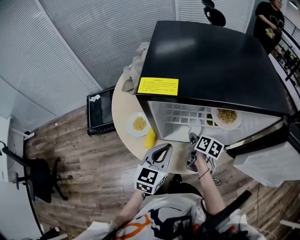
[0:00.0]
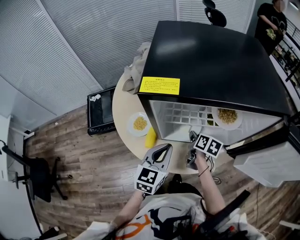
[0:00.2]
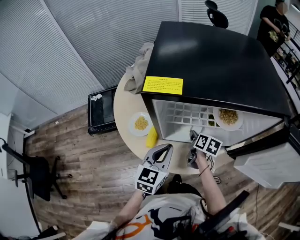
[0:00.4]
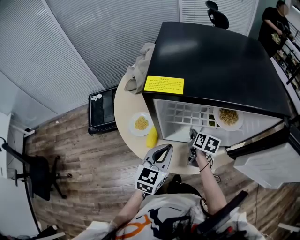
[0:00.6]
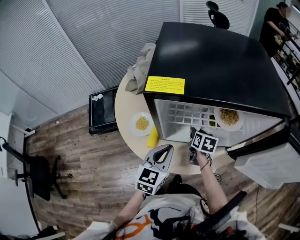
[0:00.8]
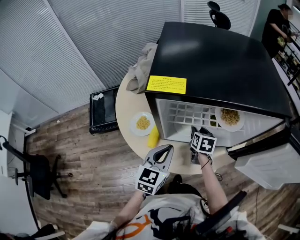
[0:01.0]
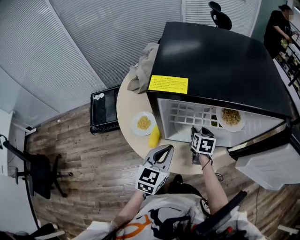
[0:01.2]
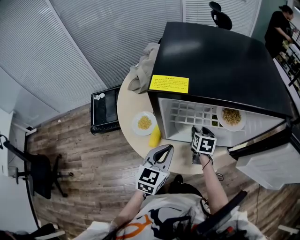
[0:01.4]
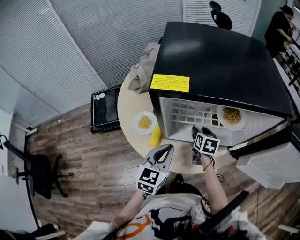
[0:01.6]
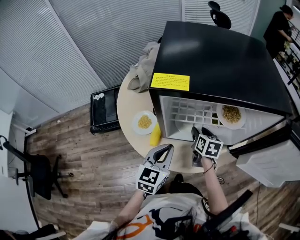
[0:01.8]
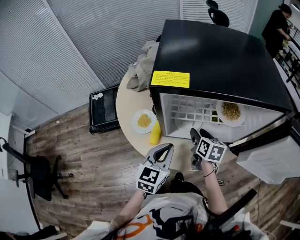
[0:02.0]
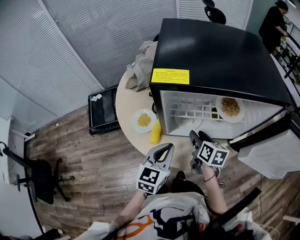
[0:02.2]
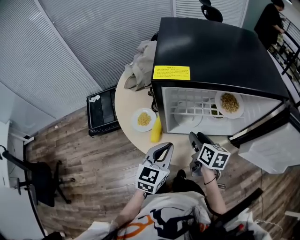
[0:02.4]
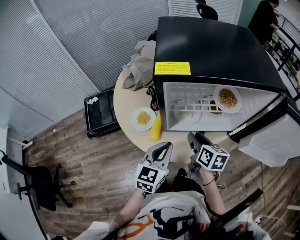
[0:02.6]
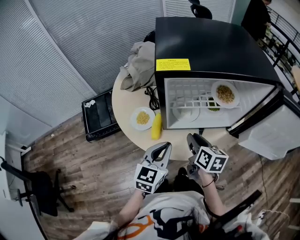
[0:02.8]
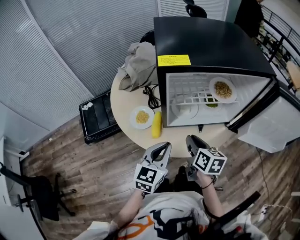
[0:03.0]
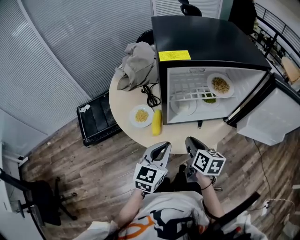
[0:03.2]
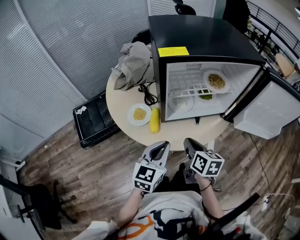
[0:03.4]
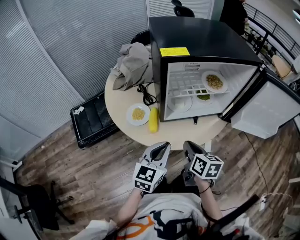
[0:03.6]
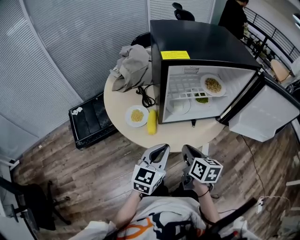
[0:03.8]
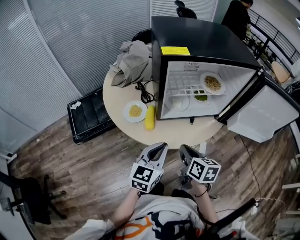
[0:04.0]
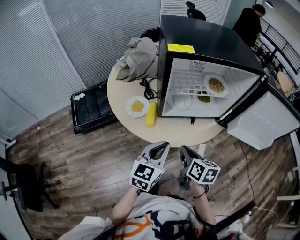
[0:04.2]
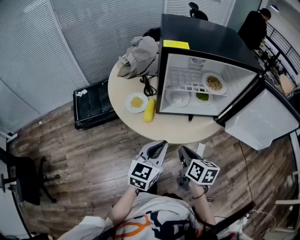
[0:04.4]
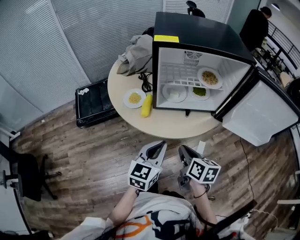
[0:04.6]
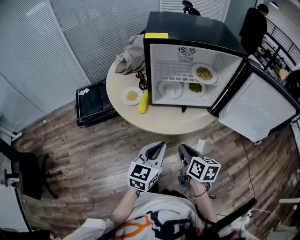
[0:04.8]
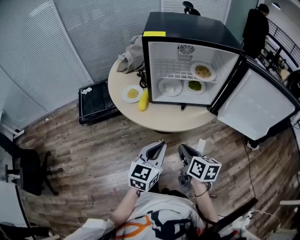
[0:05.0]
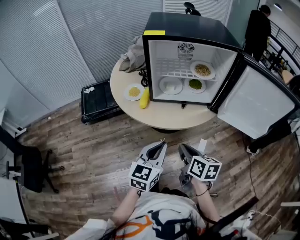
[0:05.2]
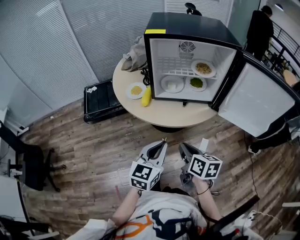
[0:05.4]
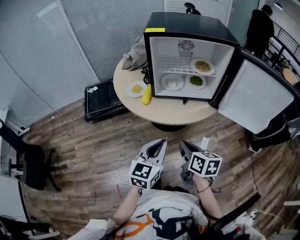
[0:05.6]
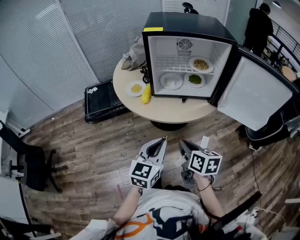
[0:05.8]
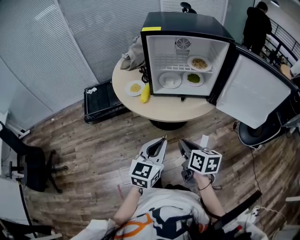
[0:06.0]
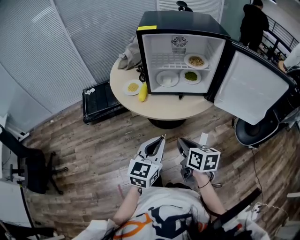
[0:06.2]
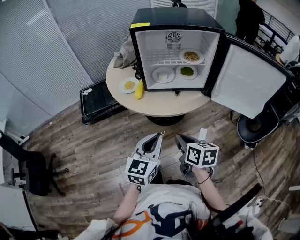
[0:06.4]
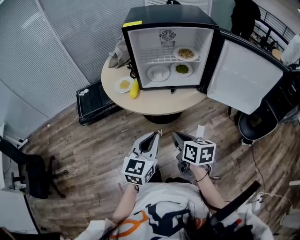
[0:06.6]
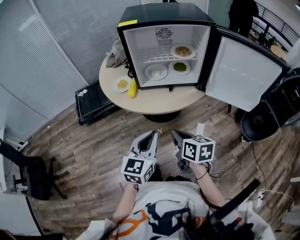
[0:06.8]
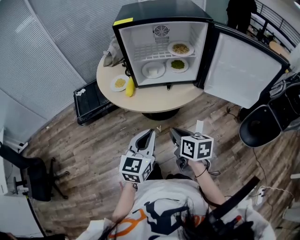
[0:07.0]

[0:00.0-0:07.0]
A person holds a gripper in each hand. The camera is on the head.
0:00.0 to 0:01.4: The right gripper turns by about 30 degrees, and opens.
0:01.4 to 0:02.8: The right gripper heads backward and upward, covering about 20 cm, and changes its angle by roughly 20 degrees. Meanwhile the left gripper heads backward, covering approximately 5 cm.
0:02.8 to 0:04.2: The right gripper is displaced backward by some 15 cm, and closes its fingers; the left gripper heads backward, covering roughly 10 cm.
0:04.2 to 0:05.6: The grippers both shift backward and to the right by roughly 15 cm.
0:05.6 to 0:07.0: The grippers make only small movements.

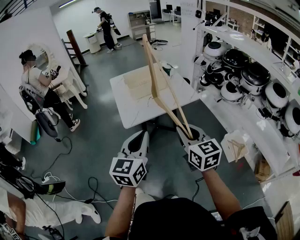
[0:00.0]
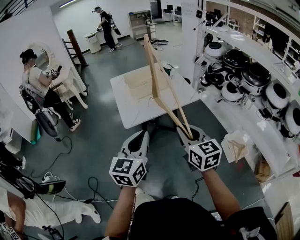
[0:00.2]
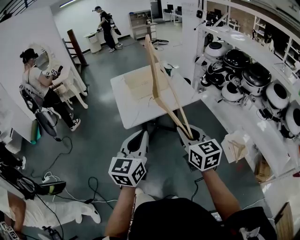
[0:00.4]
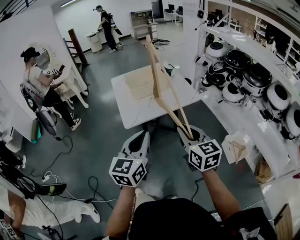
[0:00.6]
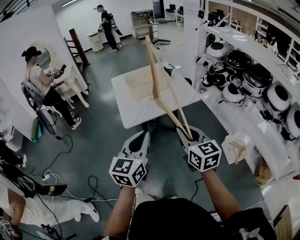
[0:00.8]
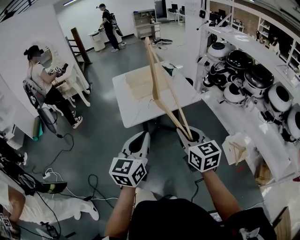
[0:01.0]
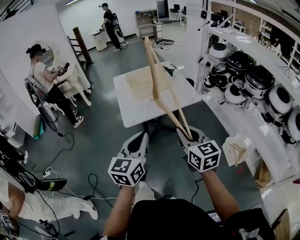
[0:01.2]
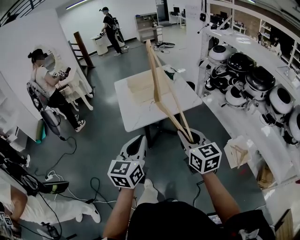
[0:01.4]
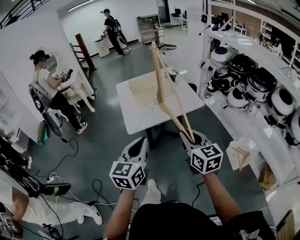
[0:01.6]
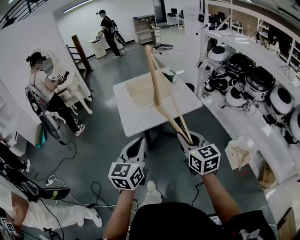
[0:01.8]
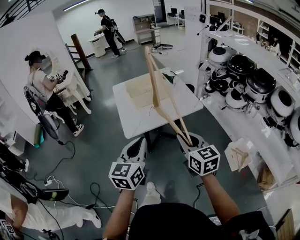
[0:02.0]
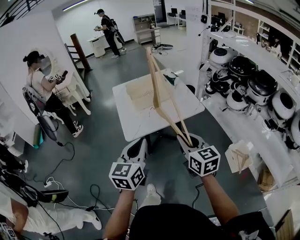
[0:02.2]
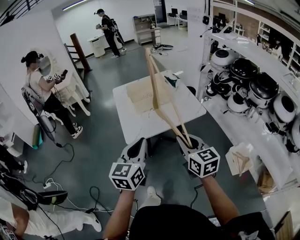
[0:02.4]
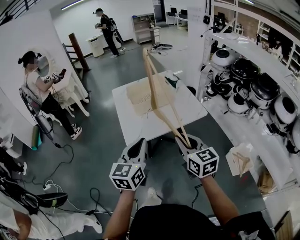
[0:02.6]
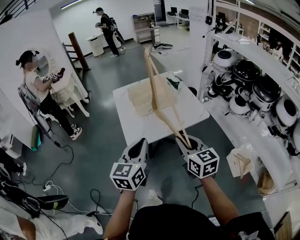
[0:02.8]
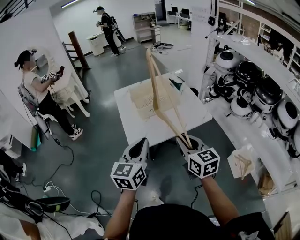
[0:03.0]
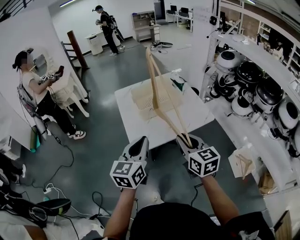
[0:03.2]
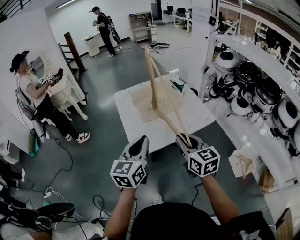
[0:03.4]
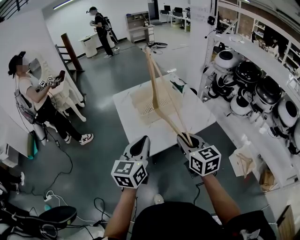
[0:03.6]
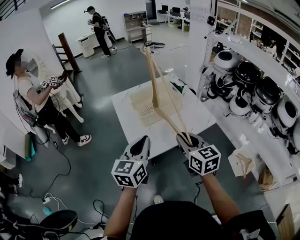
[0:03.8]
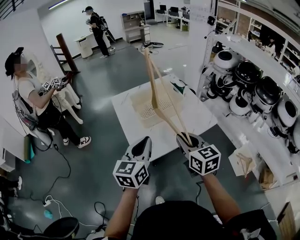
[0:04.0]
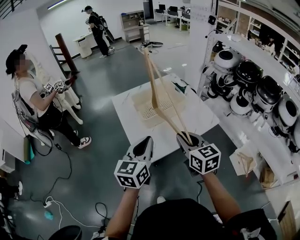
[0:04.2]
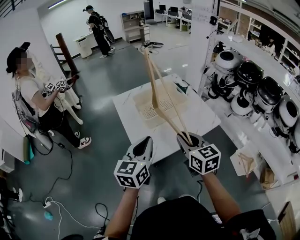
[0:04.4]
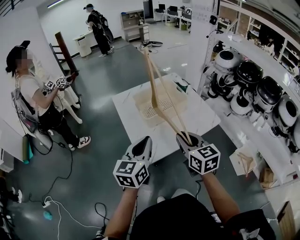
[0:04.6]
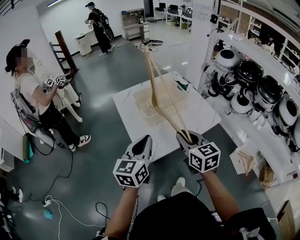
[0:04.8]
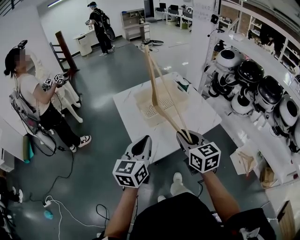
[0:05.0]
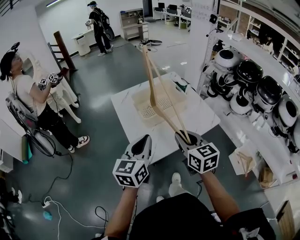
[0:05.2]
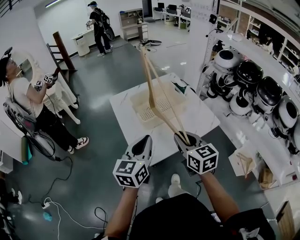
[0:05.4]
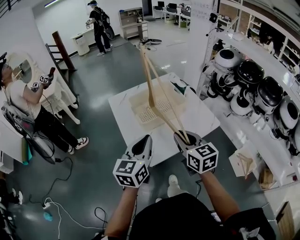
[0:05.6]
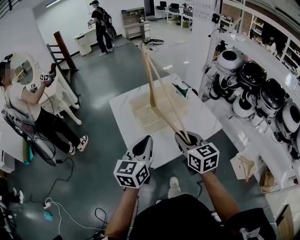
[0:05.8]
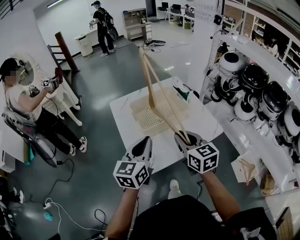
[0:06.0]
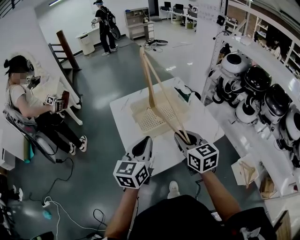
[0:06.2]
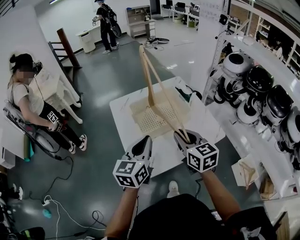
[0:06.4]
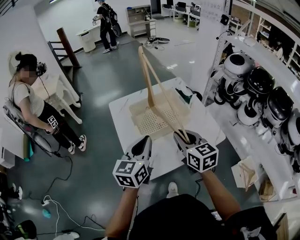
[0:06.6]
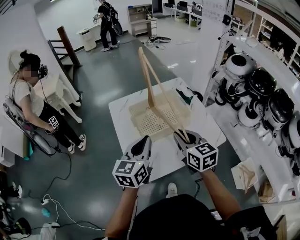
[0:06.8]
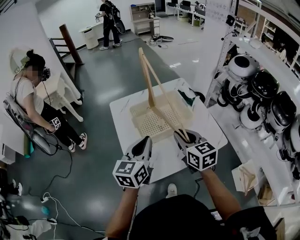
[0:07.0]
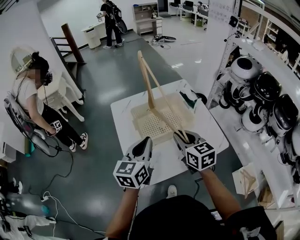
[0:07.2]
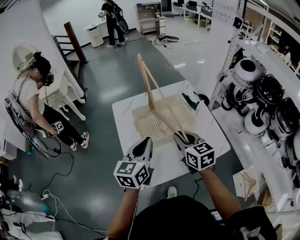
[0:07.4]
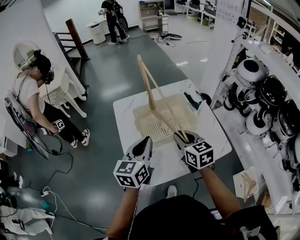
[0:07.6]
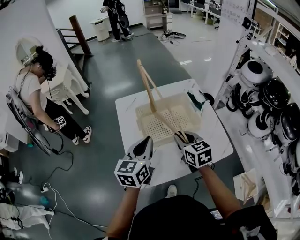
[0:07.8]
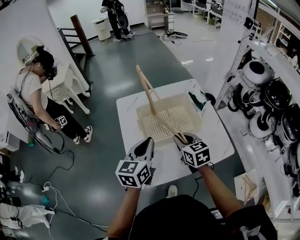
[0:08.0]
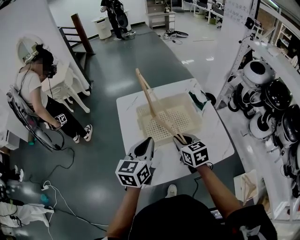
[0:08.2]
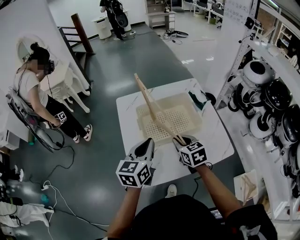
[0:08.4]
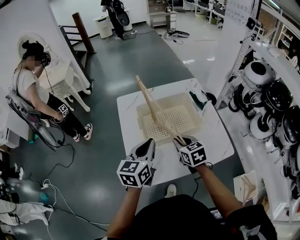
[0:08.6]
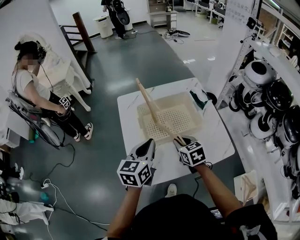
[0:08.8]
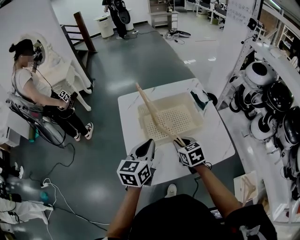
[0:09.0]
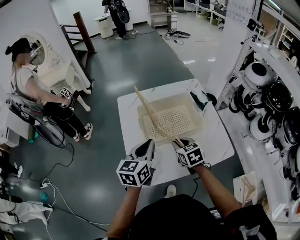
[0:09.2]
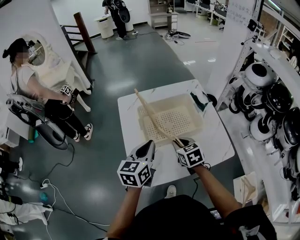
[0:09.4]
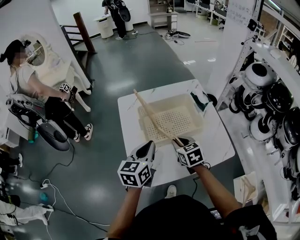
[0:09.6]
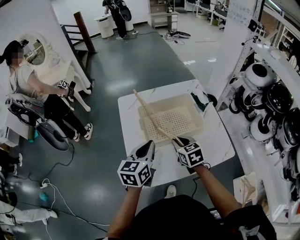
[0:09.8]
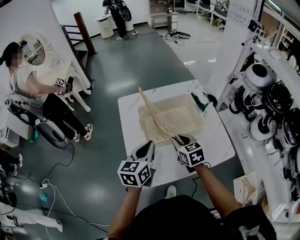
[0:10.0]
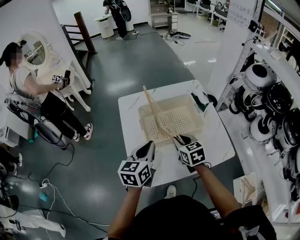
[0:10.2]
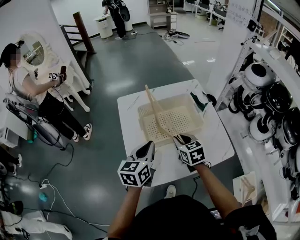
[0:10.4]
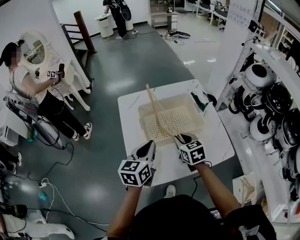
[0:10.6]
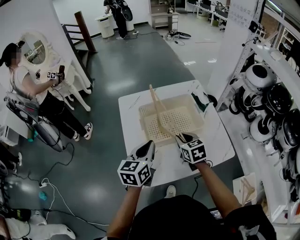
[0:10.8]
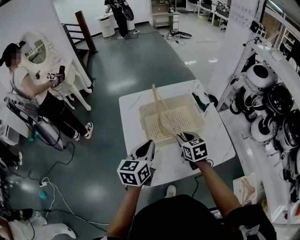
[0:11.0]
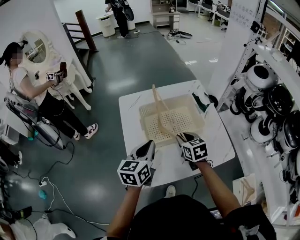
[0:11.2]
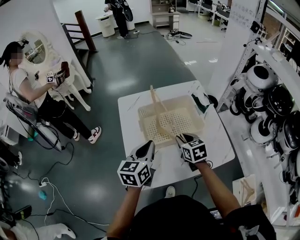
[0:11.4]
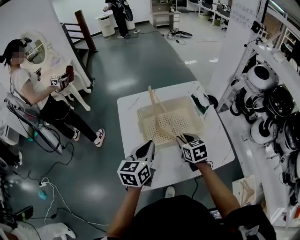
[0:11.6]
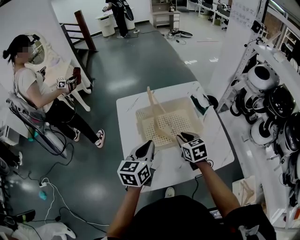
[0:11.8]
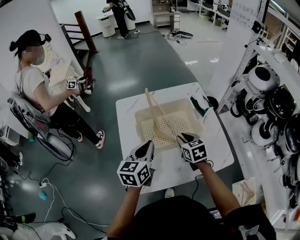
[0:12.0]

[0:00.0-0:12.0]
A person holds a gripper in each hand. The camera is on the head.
0:00.0 to 0:01.6: The grippers make only small movements.
0:01.6 to 0:03.0: The right gripper is displaced forward and to the left by some 15 cm, while the left gripper is displaced forward by roughly 15 cm.
0:03.0 to 0:04.4: The grippers both shift forward and to the left by about 15 cm.
0:04.4 to 0:06.0: Both grippers travel together forward, about 10 cm.
0:06.0 to 0:07.6: Both grippers move forward, approximately 15 cm.
0:07.6 to 0:09.0: The right gripper is displaced downward by approximately 10 cm.
0:09.0 to 0:10.4: The grippers move only a little.
0:10.4 to 0:12.0: The right gripper changes place by approximately 5 cm.

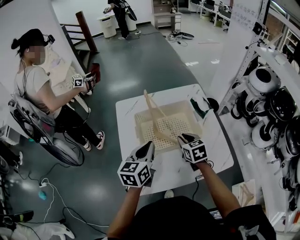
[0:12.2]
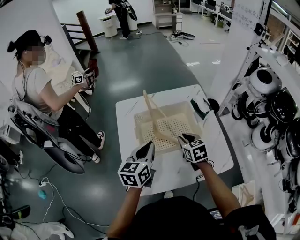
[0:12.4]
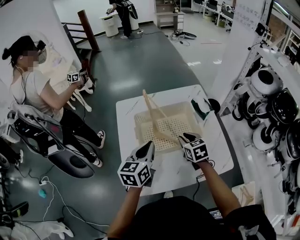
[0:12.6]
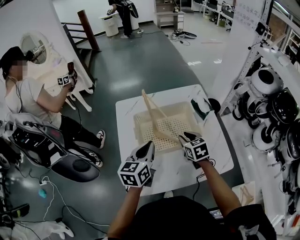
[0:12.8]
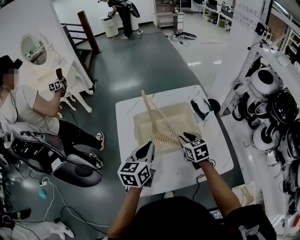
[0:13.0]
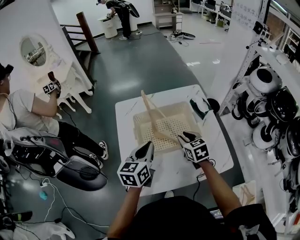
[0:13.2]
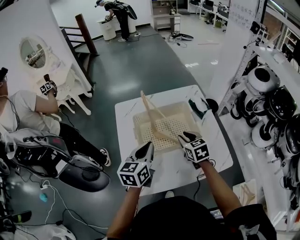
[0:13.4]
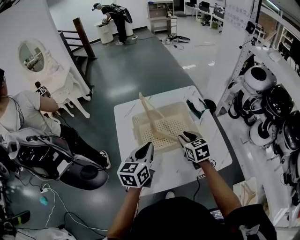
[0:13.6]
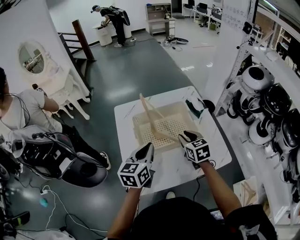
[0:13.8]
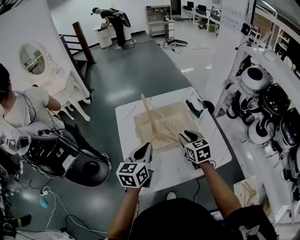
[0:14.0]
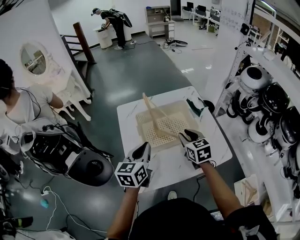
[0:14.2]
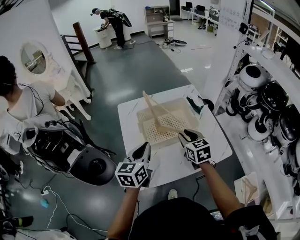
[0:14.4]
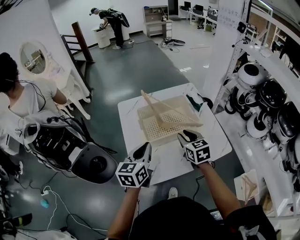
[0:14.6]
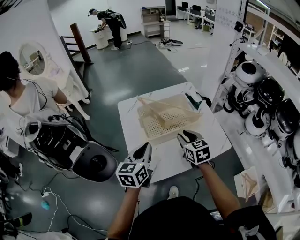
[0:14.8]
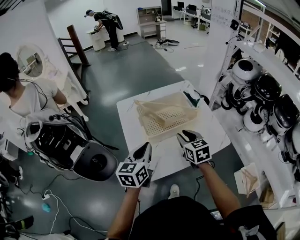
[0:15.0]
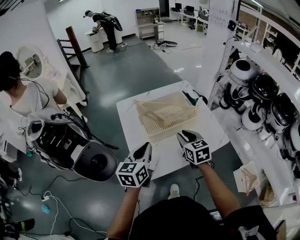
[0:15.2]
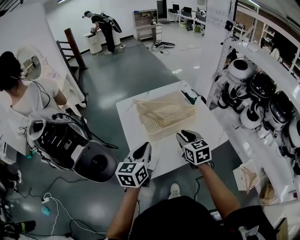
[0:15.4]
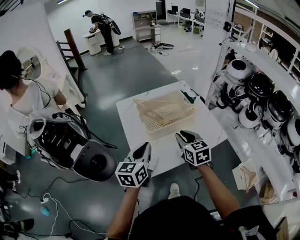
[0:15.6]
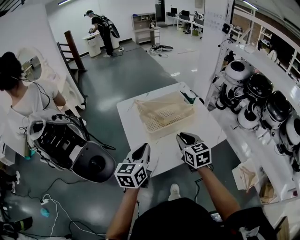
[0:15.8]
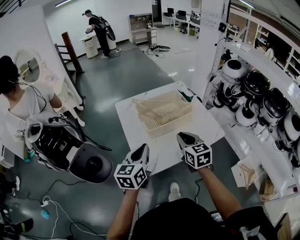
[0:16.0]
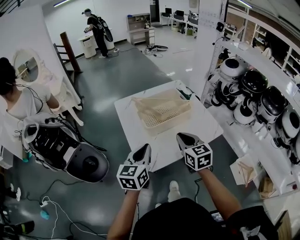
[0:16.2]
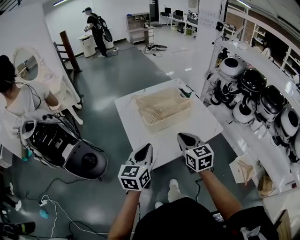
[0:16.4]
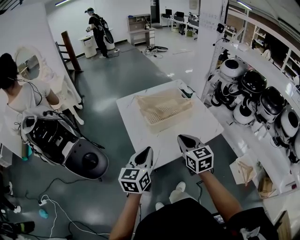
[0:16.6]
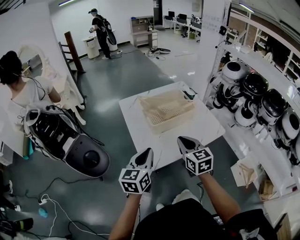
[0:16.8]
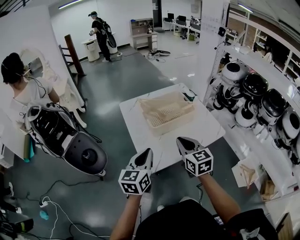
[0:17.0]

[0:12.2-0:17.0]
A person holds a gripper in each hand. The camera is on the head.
0:12.2 to 0:13.8: The grippers make only small movements.
0:13.8 to 0:15.4: The right gripper is displaced backward, upward and to the left by approximately 15 cm, while the left gripper is displaced backward and to the left by approximately 15 cm.
0:15.4 to 0:17.0: Both grippers move backward, some 10 cm.
